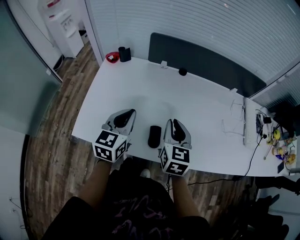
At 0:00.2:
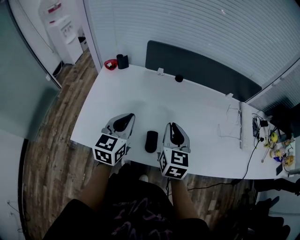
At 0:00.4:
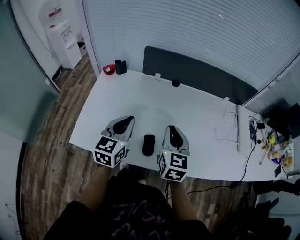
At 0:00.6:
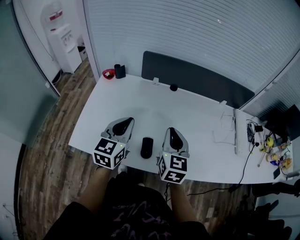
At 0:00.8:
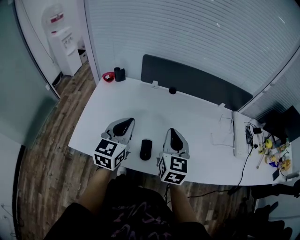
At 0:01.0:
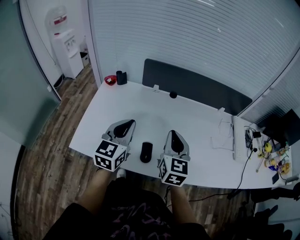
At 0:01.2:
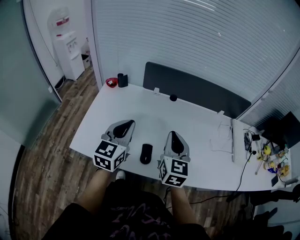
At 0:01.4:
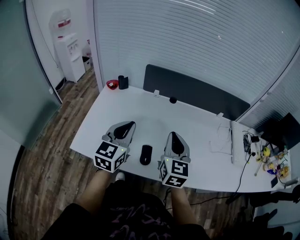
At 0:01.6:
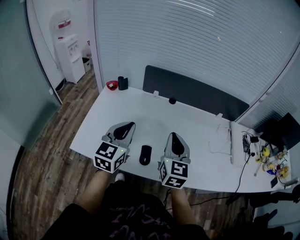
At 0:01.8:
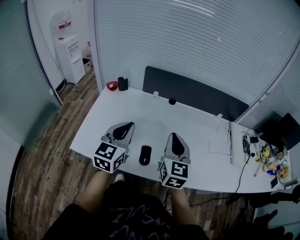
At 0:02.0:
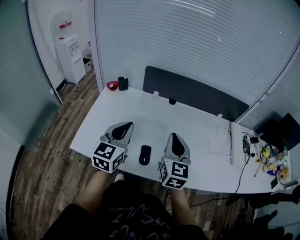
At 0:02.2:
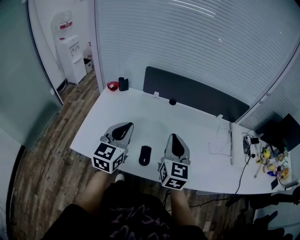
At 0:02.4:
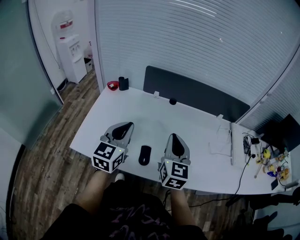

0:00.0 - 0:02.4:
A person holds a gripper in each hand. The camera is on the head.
0:00.0 - 0:01.2: The grippers both shift upward by about 5 cm.
0:01.2 - 0:02.4: The grippers make only small movements.

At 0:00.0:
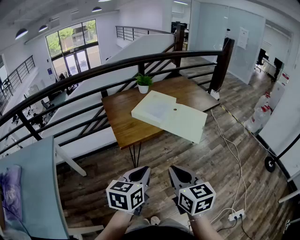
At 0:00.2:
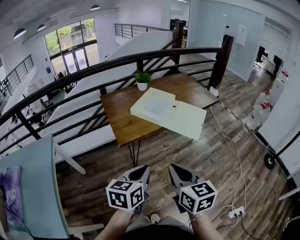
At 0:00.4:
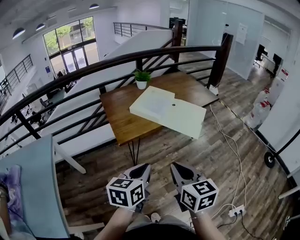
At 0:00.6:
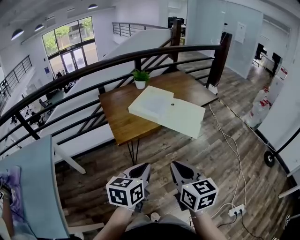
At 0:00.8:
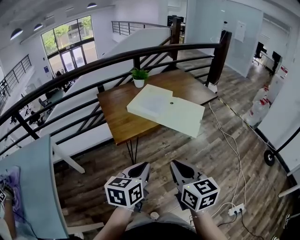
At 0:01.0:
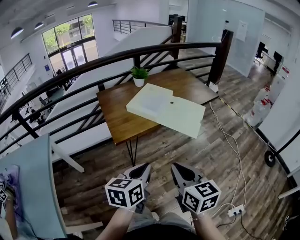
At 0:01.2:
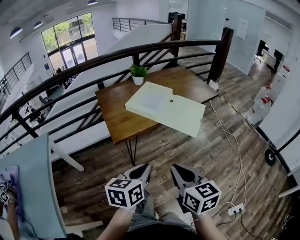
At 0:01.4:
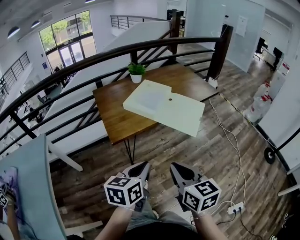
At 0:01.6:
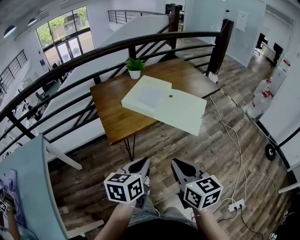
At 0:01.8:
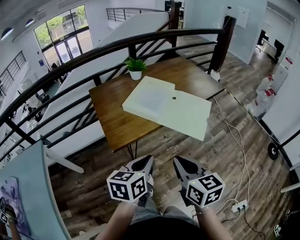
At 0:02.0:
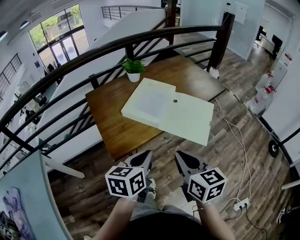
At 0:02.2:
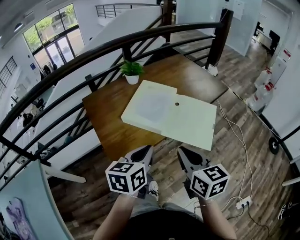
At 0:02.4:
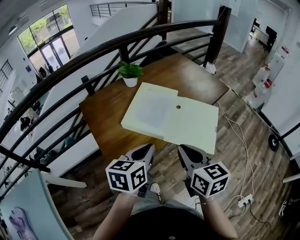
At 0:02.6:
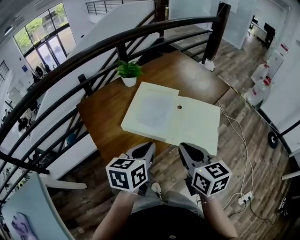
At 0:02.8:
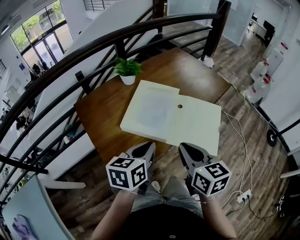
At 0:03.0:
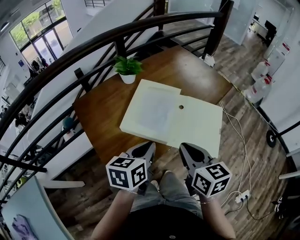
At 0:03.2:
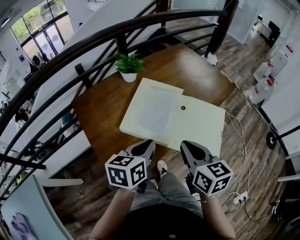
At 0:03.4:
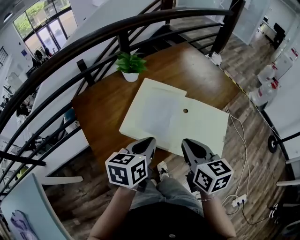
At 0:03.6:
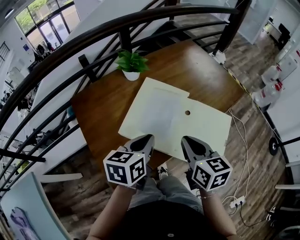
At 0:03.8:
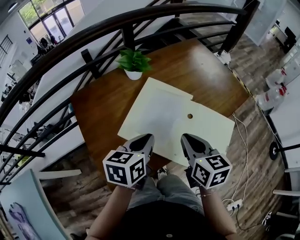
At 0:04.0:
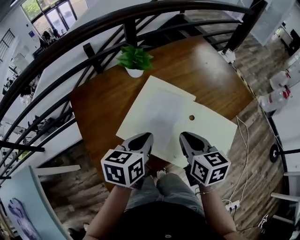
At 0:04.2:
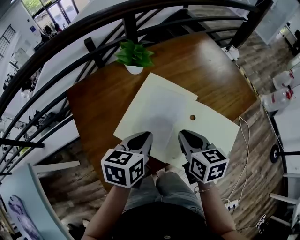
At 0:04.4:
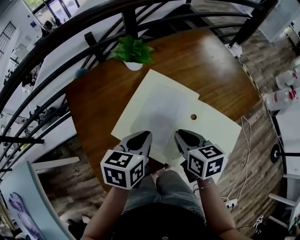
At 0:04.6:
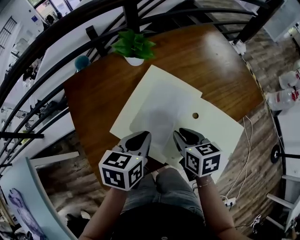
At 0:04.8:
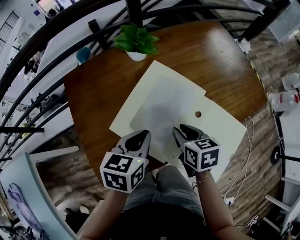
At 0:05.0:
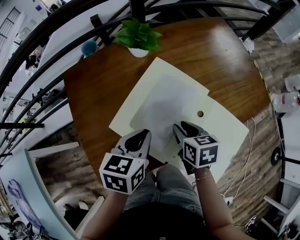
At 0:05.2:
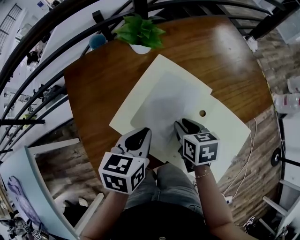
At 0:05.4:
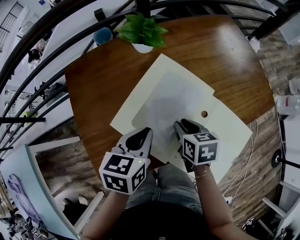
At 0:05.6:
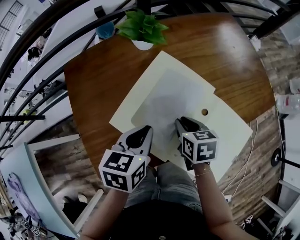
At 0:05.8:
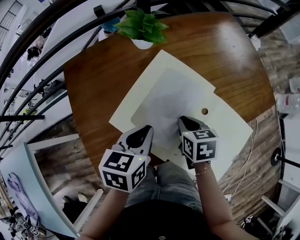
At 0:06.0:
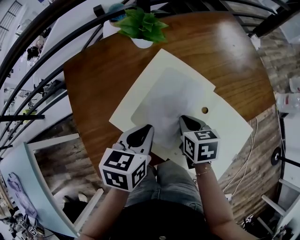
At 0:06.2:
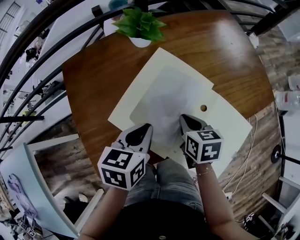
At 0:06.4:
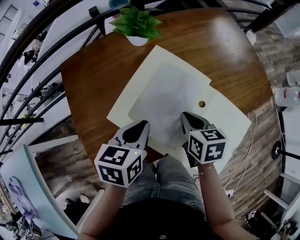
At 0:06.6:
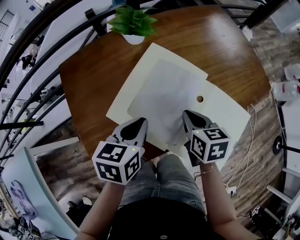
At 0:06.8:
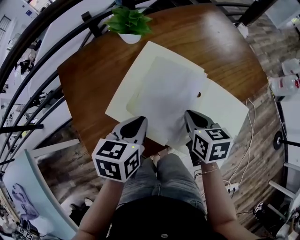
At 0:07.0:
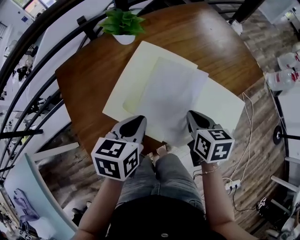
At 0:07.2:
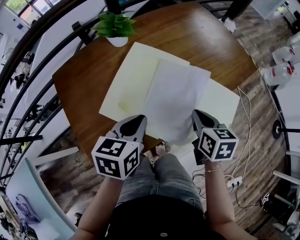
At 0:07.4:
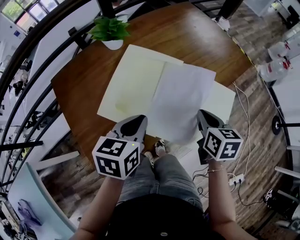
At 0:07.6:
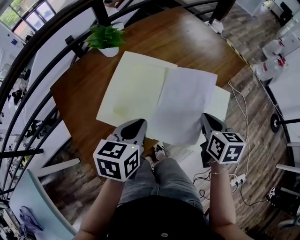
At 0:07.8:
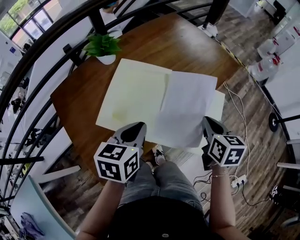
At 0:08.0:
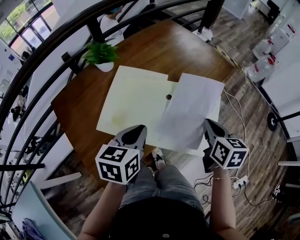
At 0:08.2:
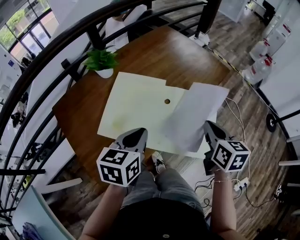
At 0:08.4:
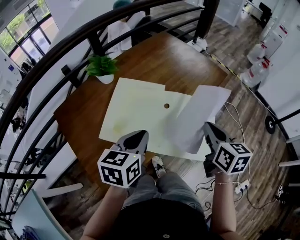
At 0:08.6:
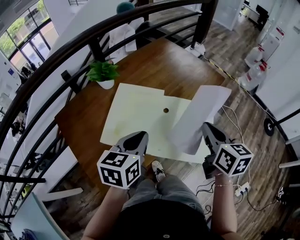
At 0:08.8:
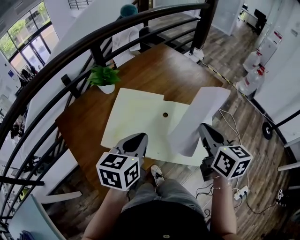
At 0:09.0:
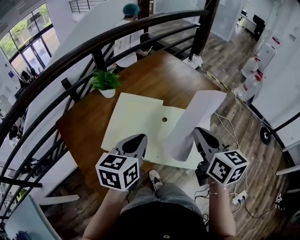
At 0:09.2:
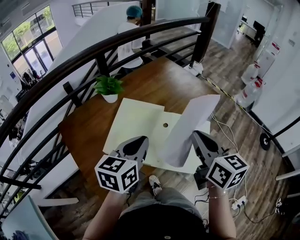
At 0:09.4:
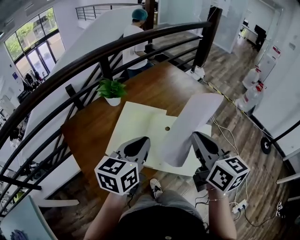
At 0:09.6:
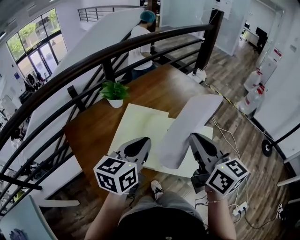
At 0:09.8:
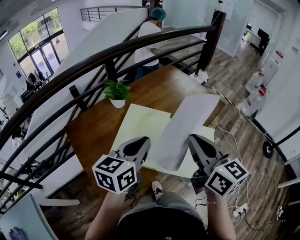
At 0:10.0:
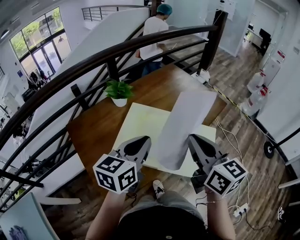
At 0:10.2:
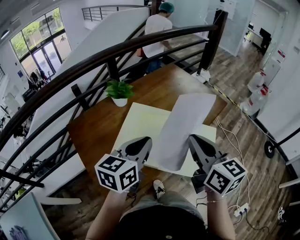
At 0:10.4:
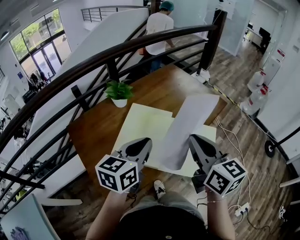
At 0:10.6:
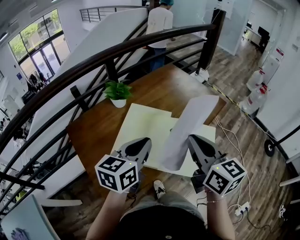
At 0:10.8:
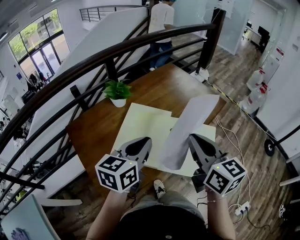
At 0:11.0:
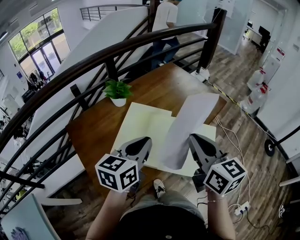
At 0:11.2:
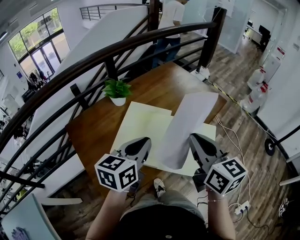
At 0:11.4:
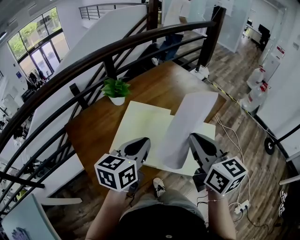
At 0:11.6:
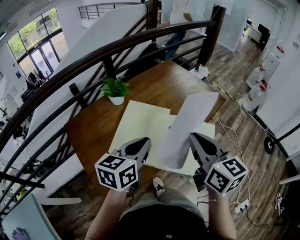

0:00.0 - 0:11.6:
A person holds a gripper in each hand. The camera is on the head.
0:00.0 - 0:01.4: The right gripper moves some 5 cm; the left gripper changes place by approximately 5 cm.
0:01.4 - 0:02.8: The two grippers go about 30 cm forward.
0:02.8 - 0:04.4: The right gripper shifts about 20 cm forward and downward, and changes its angle by some 20 degrees; the left gripper is displaced forward by some 15 cm.
0:04.4 - 0:05.8: The right gripper travels downward by some 10 cm.
0:05.8 - 0:07.2: The right gripper moves to the right, backward and upward, approximately 15 cm, and turns by approximately 20 degrees.
0:07.2 - 0:08.8: The left gripper shifts roughly 10 cm upward, while the right gripper is displaced upward and to the right by approximately 15 cm, and swivels some 20 degrees.
0:08.8 - 0:10.2: The left gripper heads upward, covering some 5 cm, while the right gripper heads to the left and upward, covering about 10 cm.
0:10.2 - 0:11.6: The grippers make only small movements.

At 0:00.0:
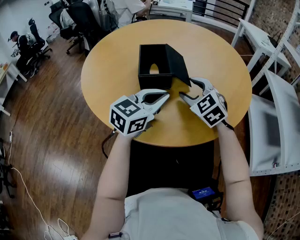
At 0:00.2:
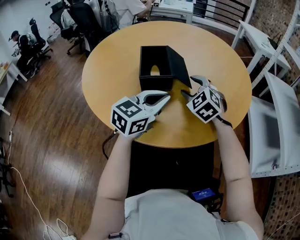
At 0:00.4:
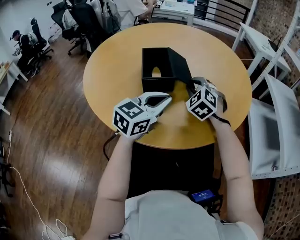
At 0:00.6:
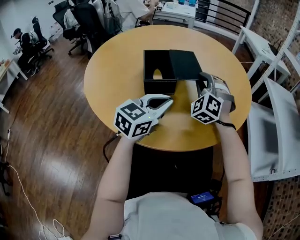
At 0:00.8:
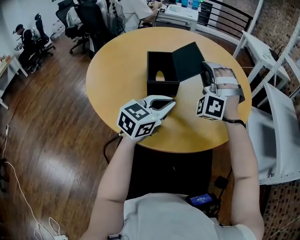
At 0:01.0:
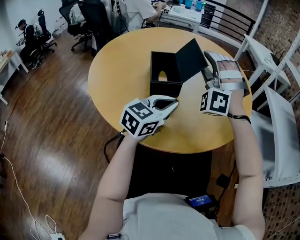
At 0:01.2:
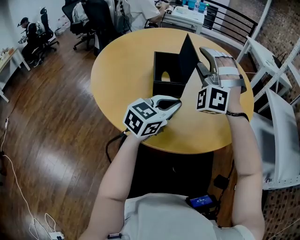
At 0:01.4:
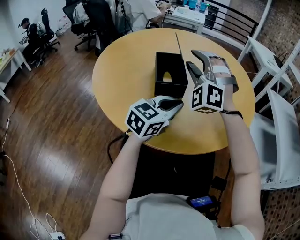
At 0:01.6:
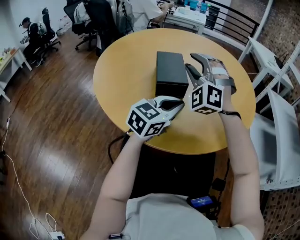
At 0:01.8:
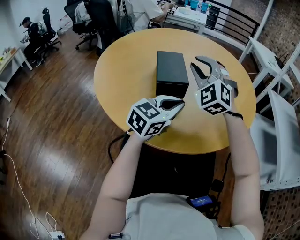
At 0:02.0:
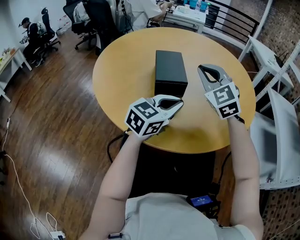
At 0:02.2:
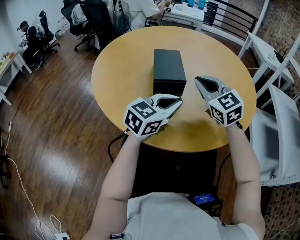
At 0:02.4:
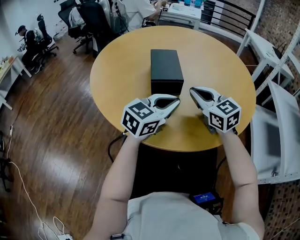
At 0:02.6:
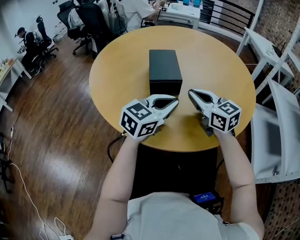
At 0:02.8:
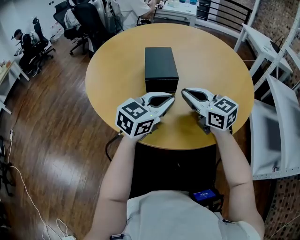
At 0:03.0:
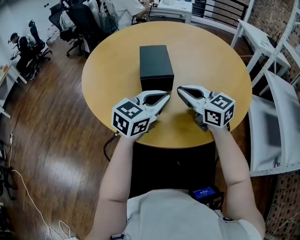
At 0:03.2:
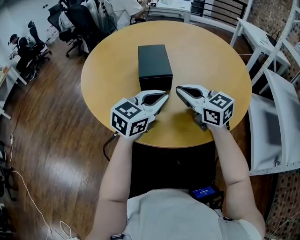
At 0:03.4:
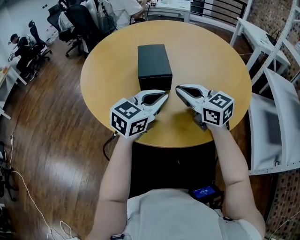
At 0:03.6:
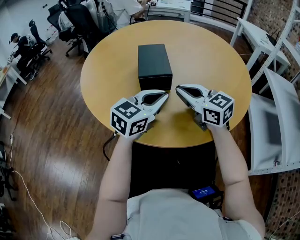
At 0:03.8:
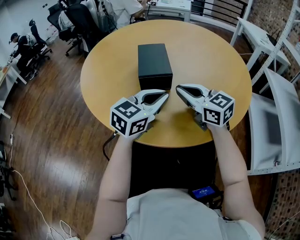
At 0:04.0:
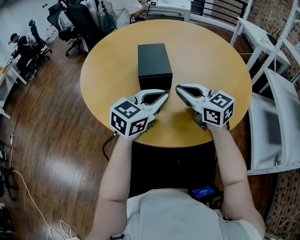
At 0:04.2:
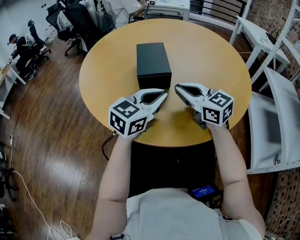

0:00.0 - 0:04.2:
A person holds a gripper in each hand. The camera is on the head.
0:00.0 - 0:01.4: The right gripper travels upward and to the left by approximately 15 cm, twists approximately 40 degrees counterclockwise, seen from behind, and closes, then opens again.
0:01.4 - 0:02.8: The right gripper moves downward and backward, roughly 15 cm, twists some 80 degrees clockwise, seen from behind, and closes its fingers.
0:02.8 - 0:04.2: The two grippers keep their place.

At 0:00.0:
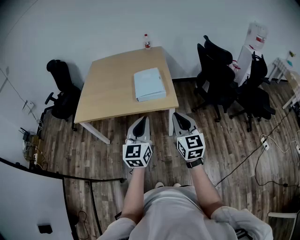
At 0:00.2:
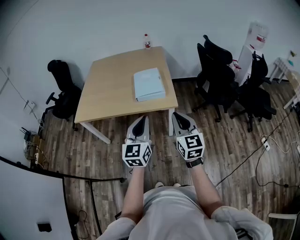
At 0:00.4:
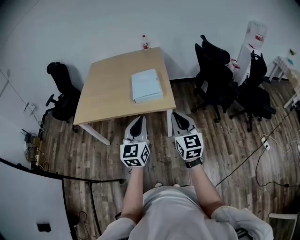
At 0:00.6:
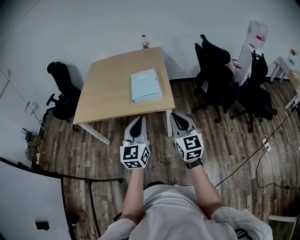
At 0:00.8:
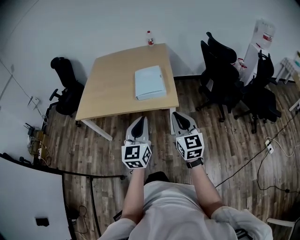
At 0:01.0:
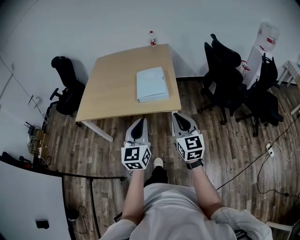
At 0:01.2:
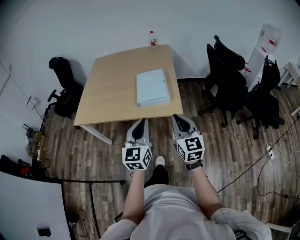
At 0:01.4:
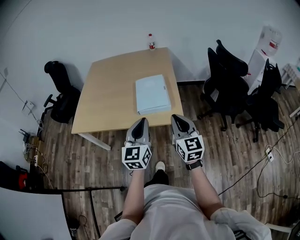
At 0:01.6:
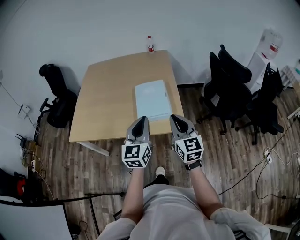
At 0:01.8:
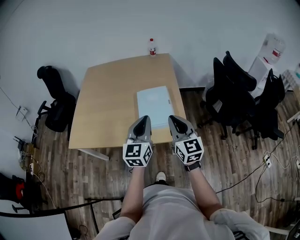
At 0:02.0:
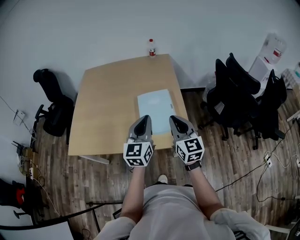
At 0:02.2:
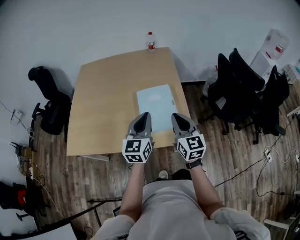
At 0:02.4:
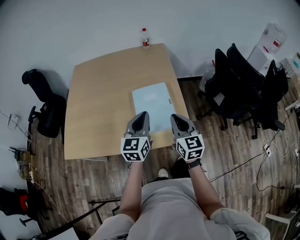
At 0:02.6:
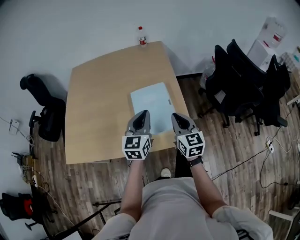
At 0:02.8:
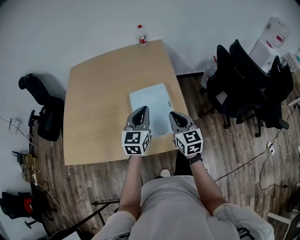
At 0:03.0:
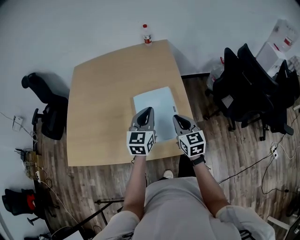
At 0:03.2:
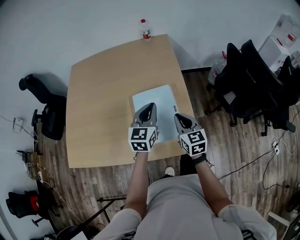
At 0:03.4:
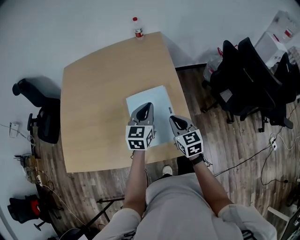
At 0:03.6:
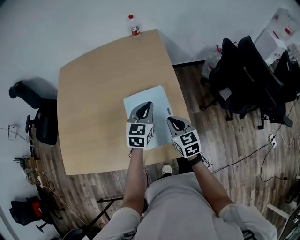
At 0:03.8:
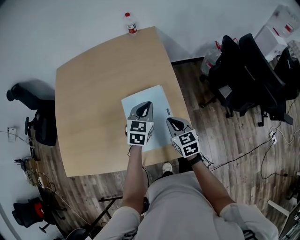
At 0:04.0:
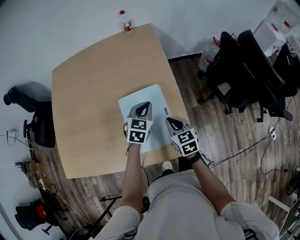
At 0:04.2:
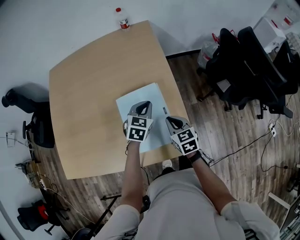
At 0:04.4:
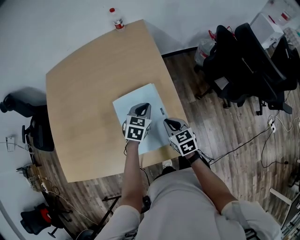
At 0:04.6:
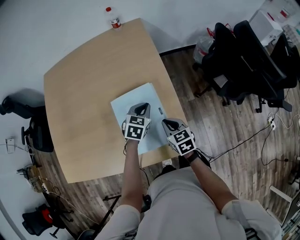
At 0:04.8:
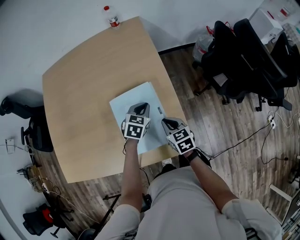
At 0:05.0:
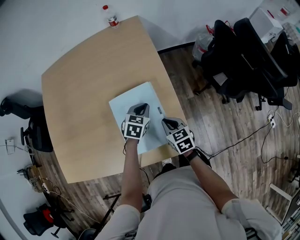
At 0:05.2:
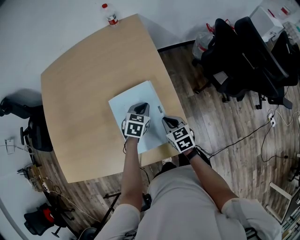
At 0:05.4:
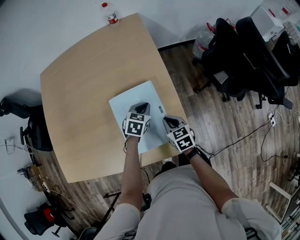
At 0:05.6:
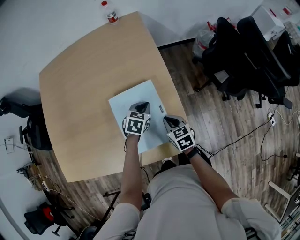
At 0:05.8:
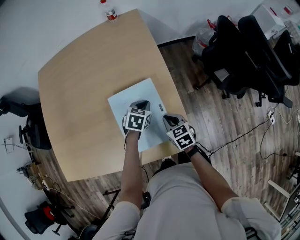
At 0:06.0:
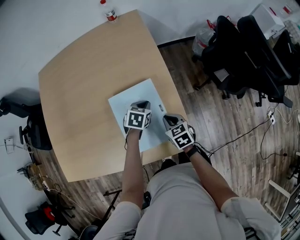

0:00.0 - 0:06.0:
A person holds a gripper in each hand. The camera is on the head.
0:00.0 - 0:01.6: Both grippers travel together forward, roughly 25 cm.
0:01.6 - 0:03.0: The right gripper travels forward and downward by some 25 cm. The left gripper shifts roughly 25 cm forward.
0:03.0 - 0:04.4: The right gripper heads downward, covering about 10 cm, and rotates roughly 20 degrees, while the left gripper moves downward and forward, about 20 cm, and rotates some 30 degrees.
0:04.4 - 0:06.0: The two grippers go some 5 cm downward.
